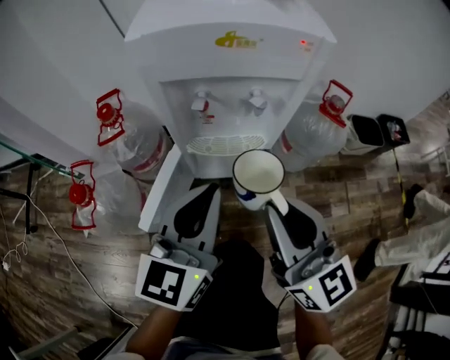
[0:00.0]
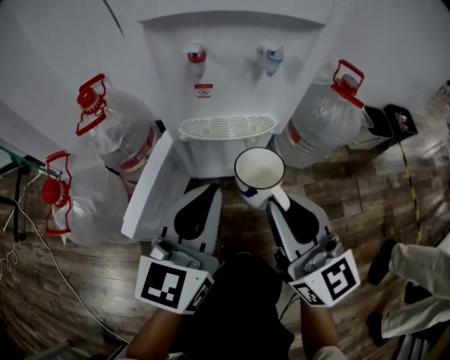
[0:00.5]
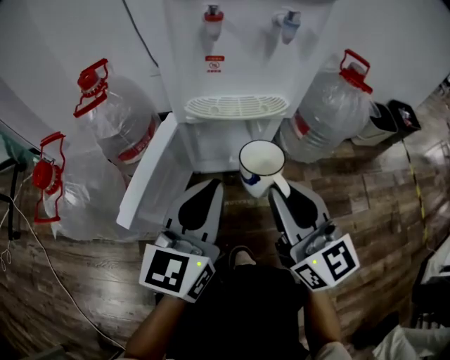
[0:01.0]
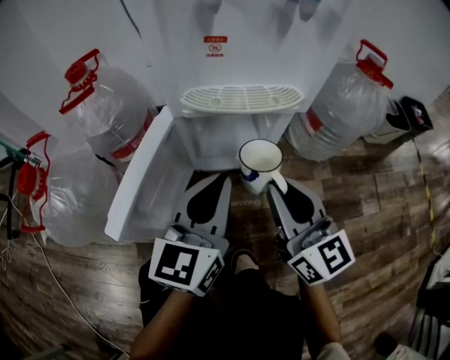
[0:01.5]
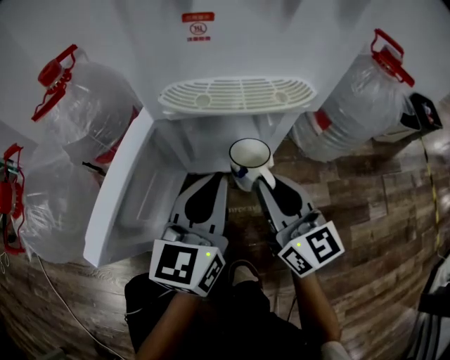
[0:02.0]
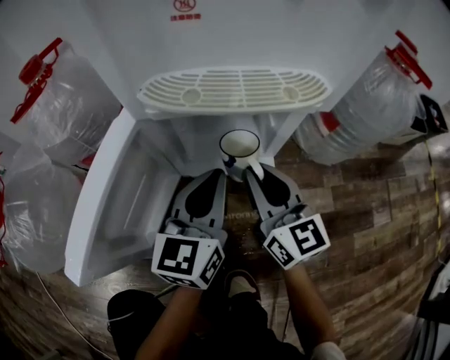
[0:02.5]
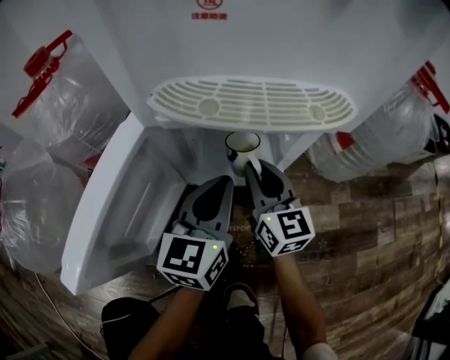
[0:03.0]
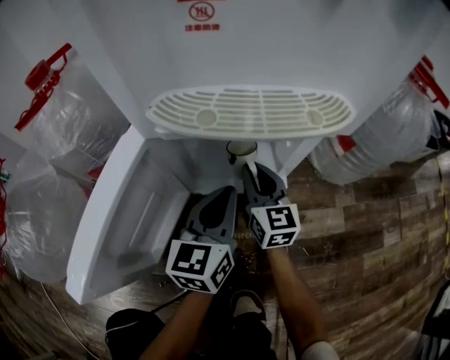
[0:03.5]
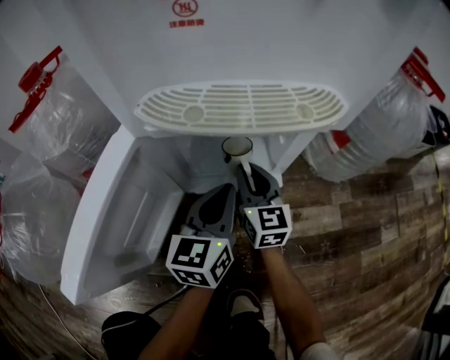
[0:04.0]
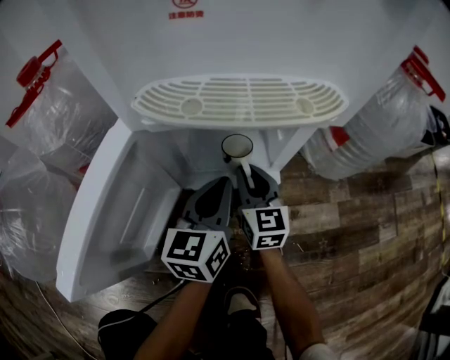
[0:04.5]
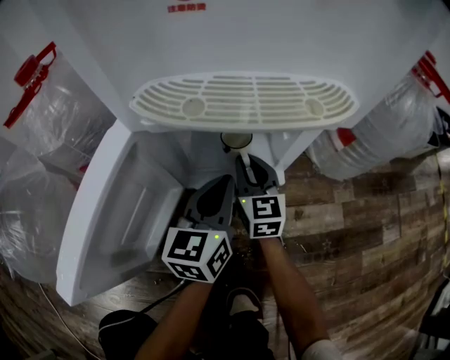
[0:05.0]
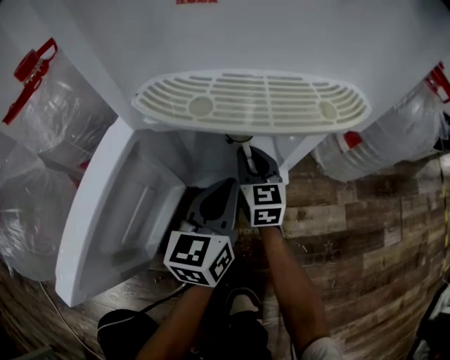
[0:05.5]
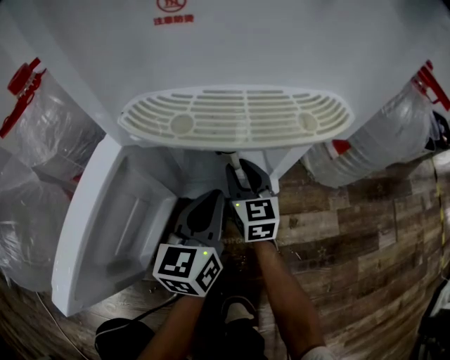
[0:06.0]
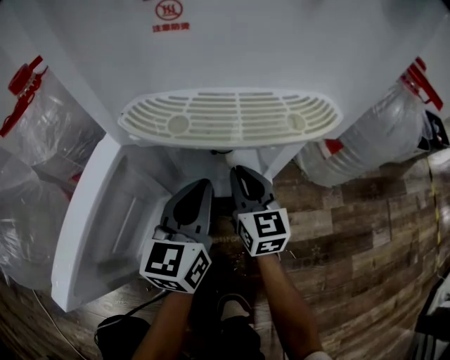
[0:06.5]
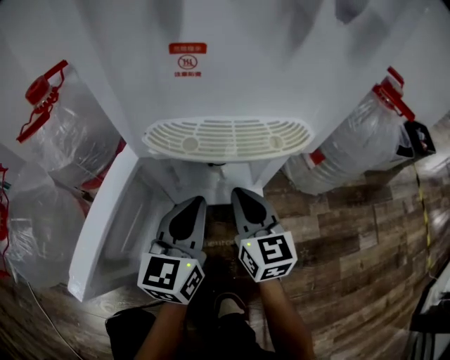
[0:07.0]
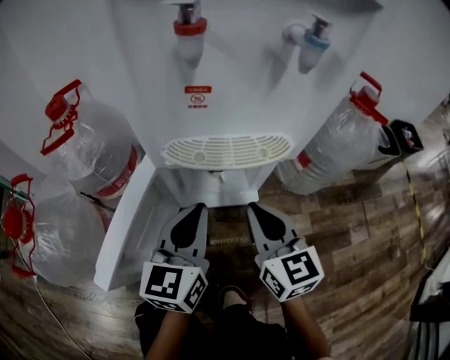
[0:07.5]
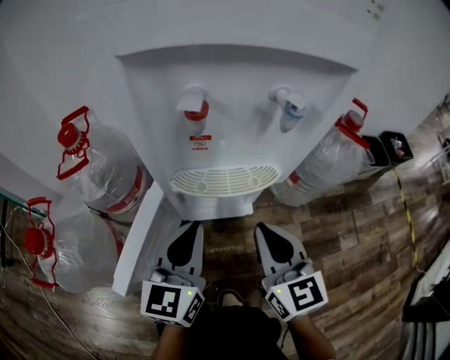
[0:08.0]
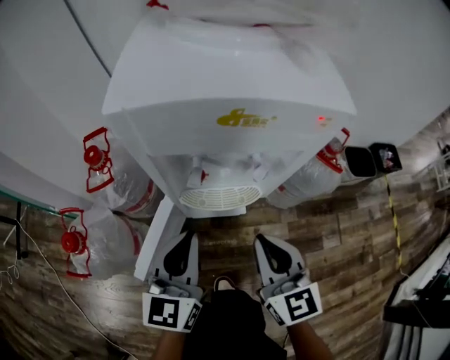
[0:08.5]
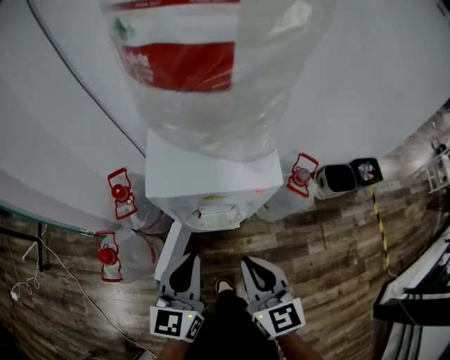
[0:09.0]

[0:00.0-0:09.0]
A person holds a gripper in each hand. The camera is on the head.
0:00.0 to 0:02.0: Both grippers move downward, some 35 cm.
0:02.0 to 0:04.5: The grippers both shift downward and forward by about 20 cm.
0:04.5 to 0:07.0: Both grippers travel together upward, about 10 cm.
0:07.0 to 0:09.0: Both grippers move upward, approximately 50 cm.

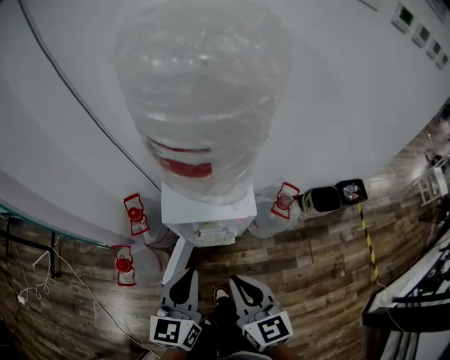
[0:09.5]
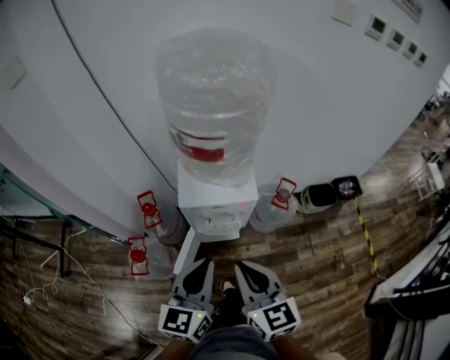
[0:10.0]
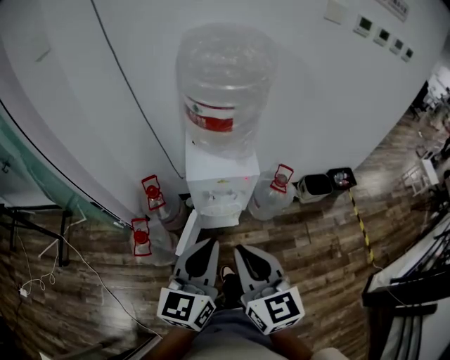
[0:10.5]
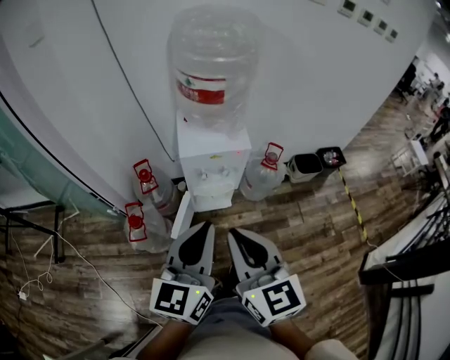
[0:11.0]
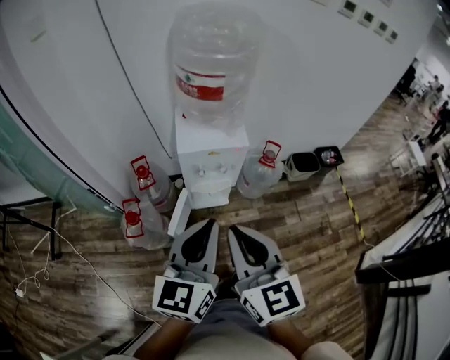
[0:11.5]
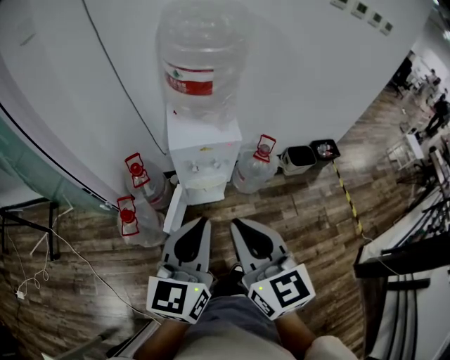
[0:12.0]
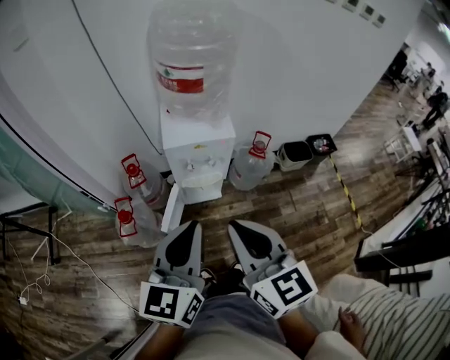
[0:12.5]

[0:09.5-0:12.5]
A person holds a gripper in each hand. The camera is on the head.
0:09.5 to 0:11.0: Both grippers move backward and upward, roughly 25 cm.
0:11.0 to 0:12.5: There are only small adjustments of the grippers.

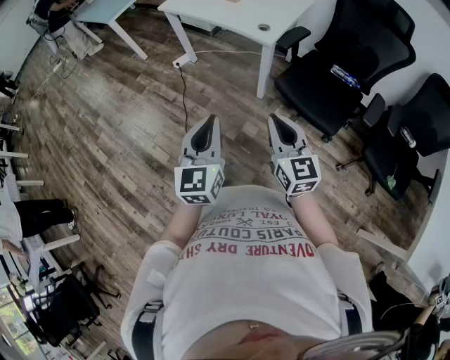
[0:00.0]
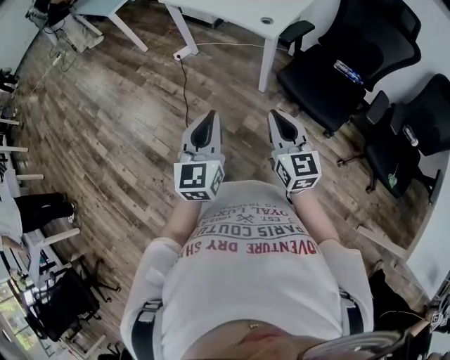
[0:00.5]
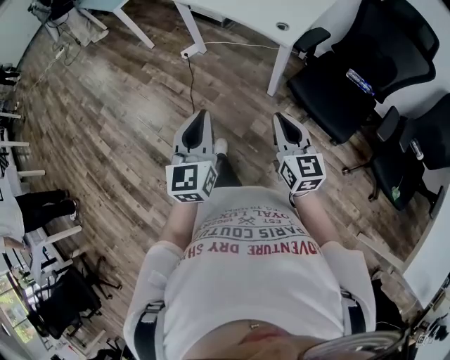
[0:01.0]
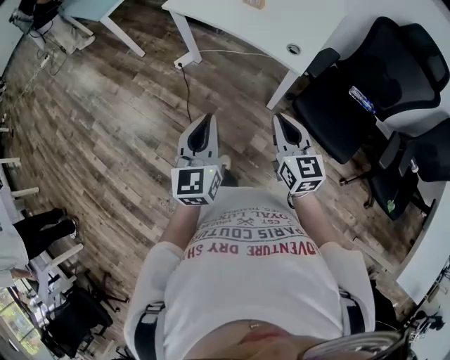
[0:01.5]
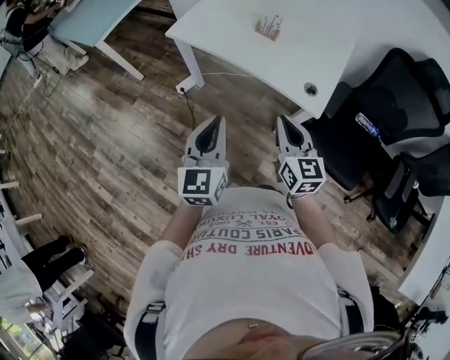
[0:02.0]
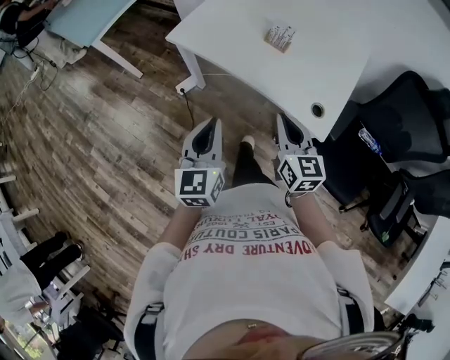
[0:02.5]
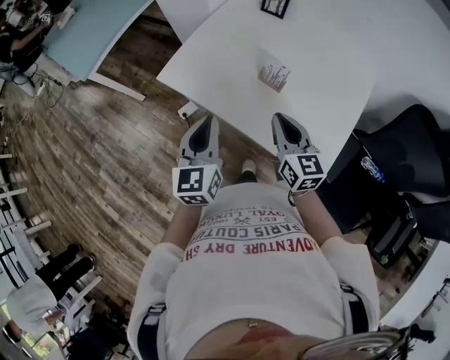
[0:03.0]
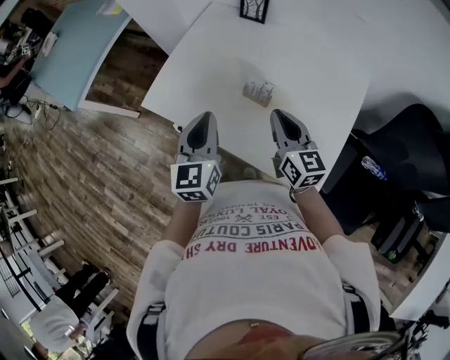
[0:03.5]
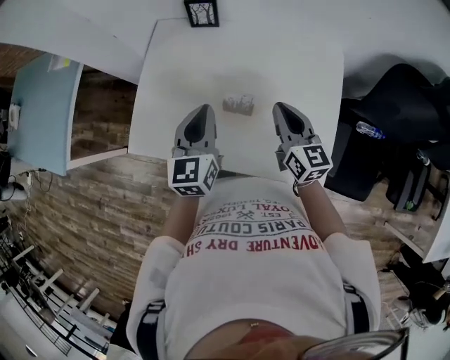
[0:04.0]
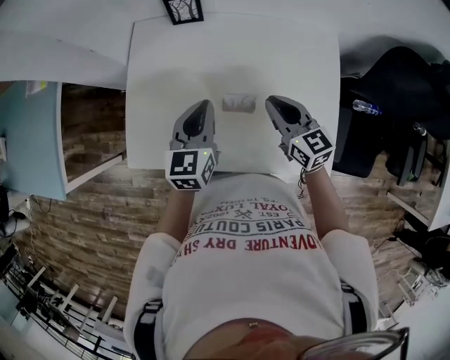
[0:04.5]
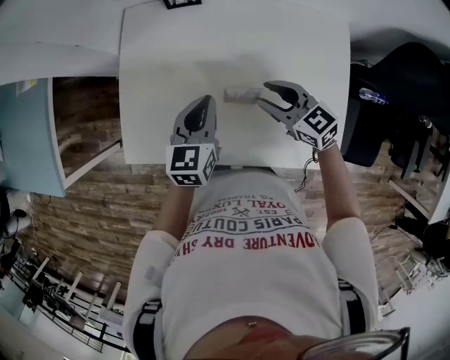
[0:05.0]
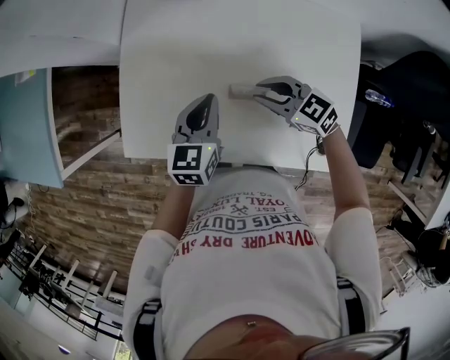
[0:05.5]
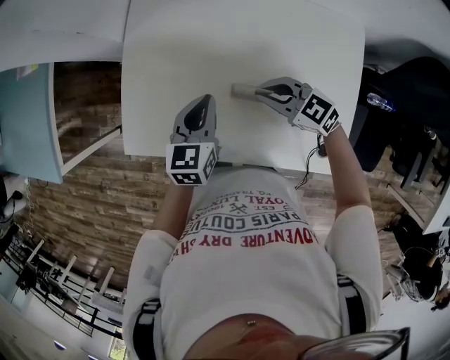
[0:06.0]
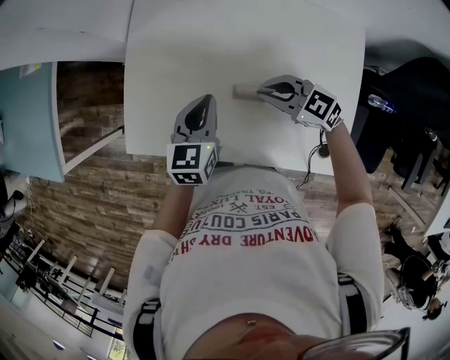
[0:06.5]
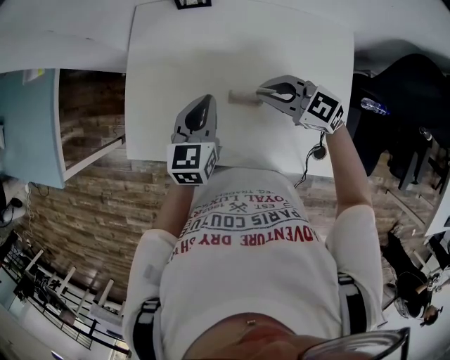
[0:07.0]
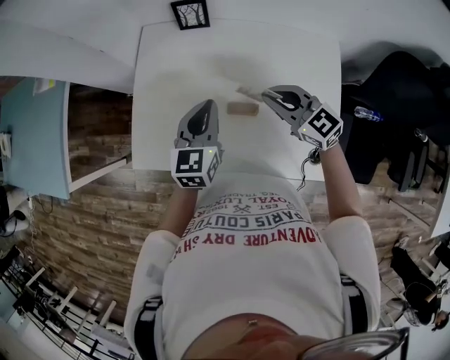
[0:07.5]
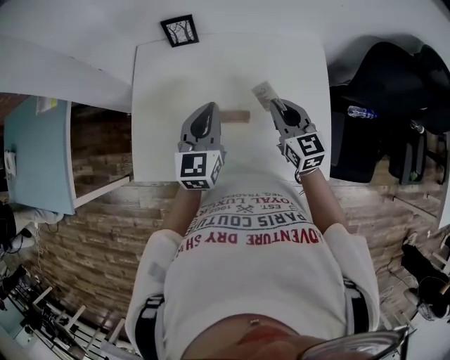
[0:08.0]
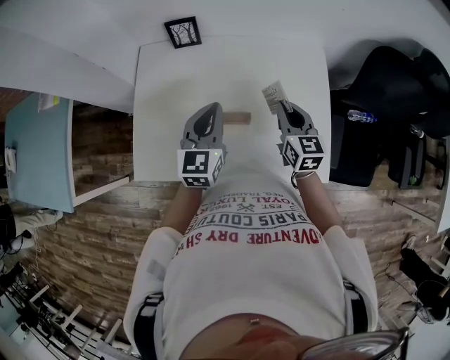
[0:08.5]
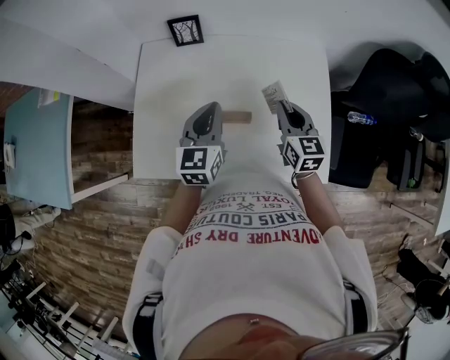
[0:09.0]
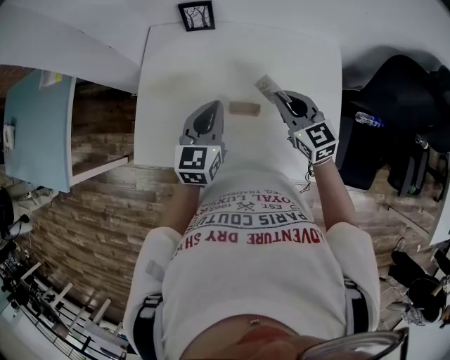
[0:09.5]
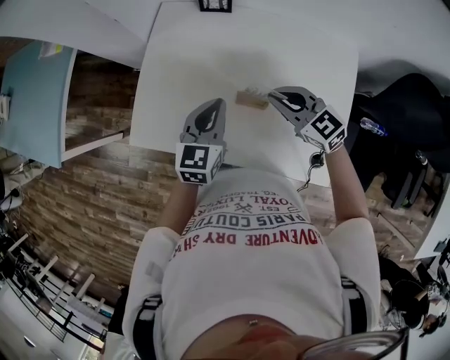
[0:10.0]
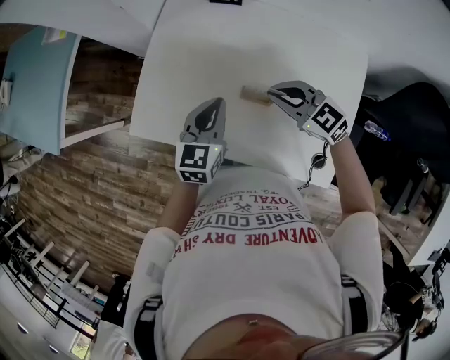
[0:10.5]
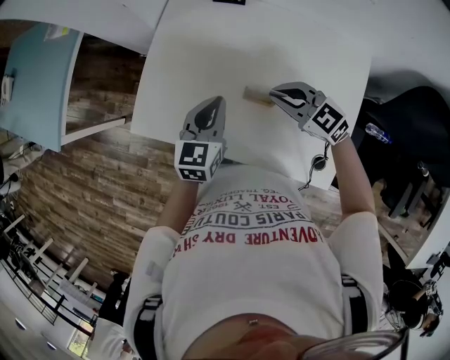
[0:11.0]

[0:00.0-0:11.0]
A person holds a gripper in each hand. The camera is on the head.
0:00.0 to 0:02.0: Both grippers are carried forward, roughly 40 cm.
0:02.0 to 0:03.5: The two grippers go approximately 35 cm forward.
0:03.5 to 0:05.5: The left gripper heads forward and downward, covering roughly 20 cm, and changes its angle by roughly 30 degrees. Meanwhile the right gripper goes some 15 cm downward and forward, and changes its angle by some 30 degrees.
0:05.5 to 0:07.5: The two grippers go approximately 10 cm upward.
0:07.5 to 0:09.0: The right gripper goes about 10 cm to the right, and changes its angle by approximately 50 degrees.
0:09.0 to 0:11.0: The left gripper travels downward by roughly 5 cm. Meanwhile the right gripper ends up about 15 cm from where it was, and changes its angle by about 70 degrees.

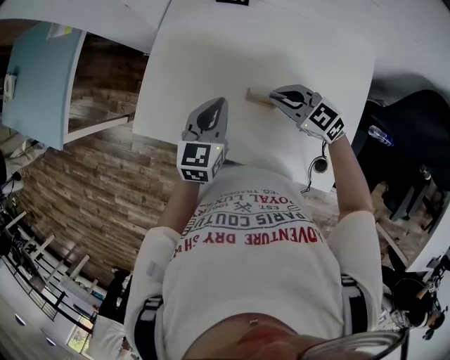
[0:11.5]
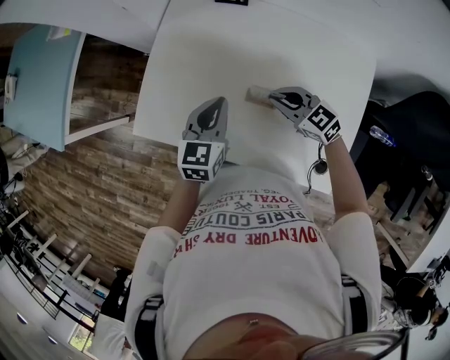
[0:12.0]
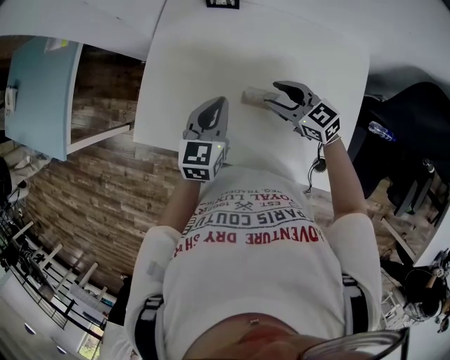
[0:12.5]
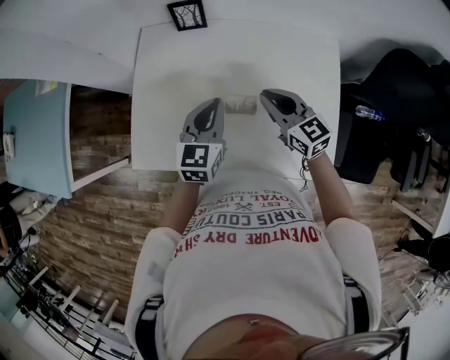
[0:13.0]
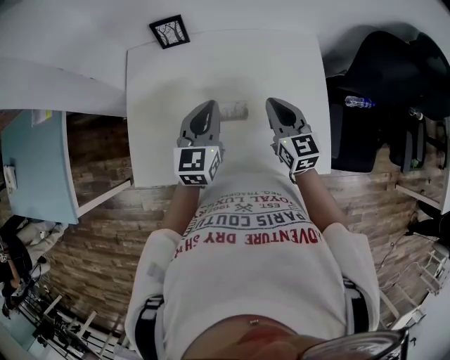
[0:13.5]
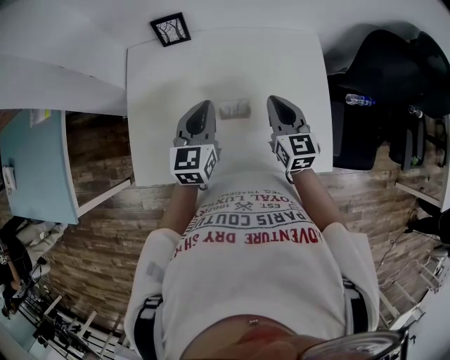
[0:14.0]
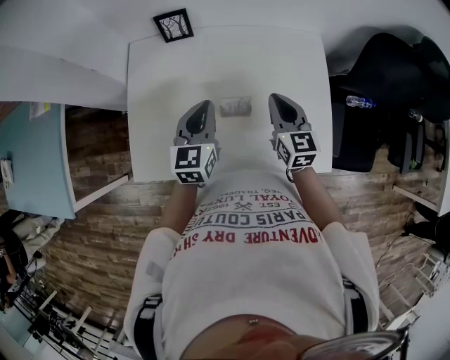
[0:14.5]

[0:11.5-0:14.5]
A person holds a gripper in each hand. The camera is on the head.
0:11.5 to 0:13.0: The left gripper goes some 5 cm to the right, while the right gripper shifts about 10 cm upward and to the right, changes its angle by approximately 40 degrees, and opens and closes again.
0:13.0 to 0:14.5: The right gripper rotates approximately 30 degrees.
